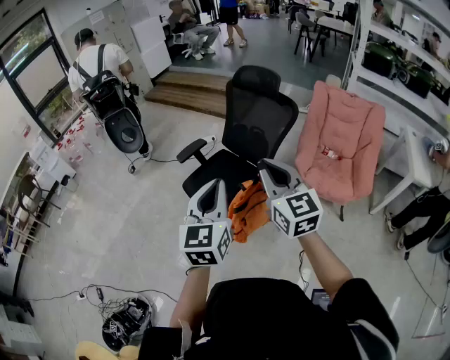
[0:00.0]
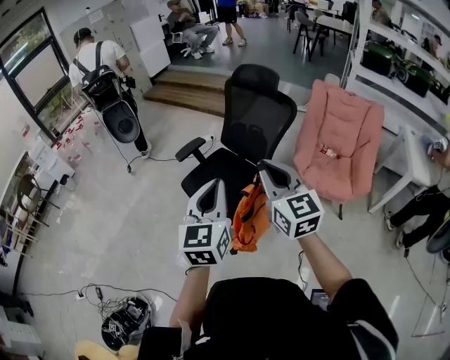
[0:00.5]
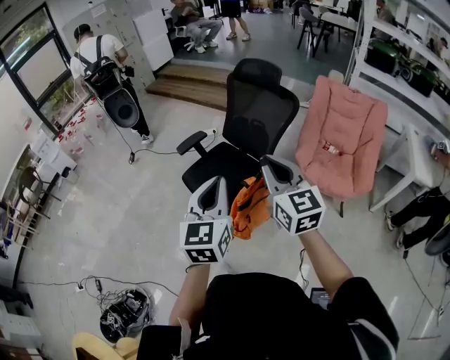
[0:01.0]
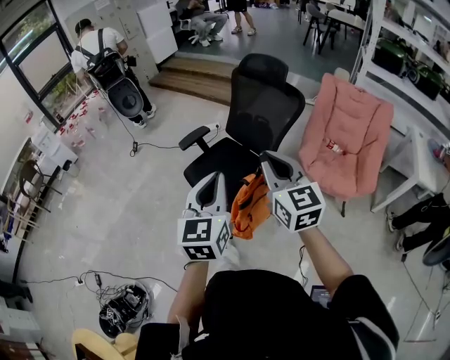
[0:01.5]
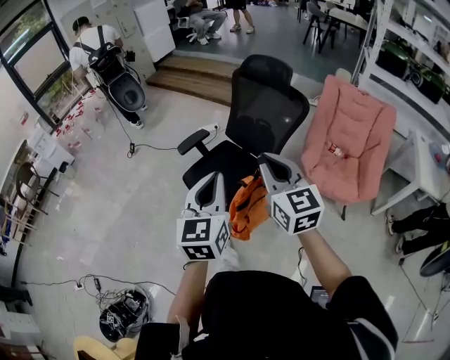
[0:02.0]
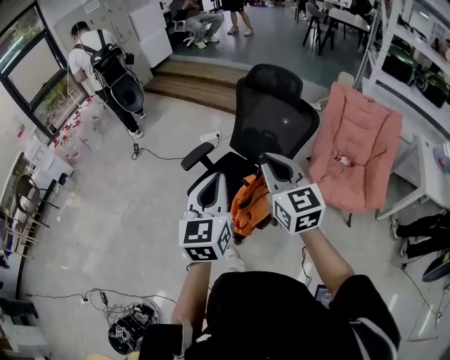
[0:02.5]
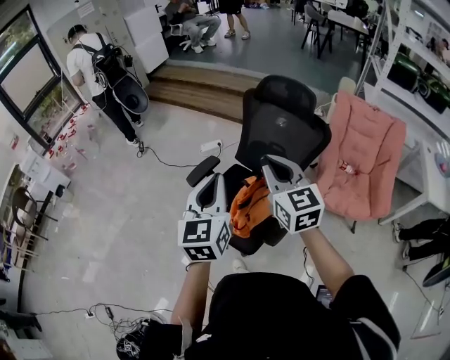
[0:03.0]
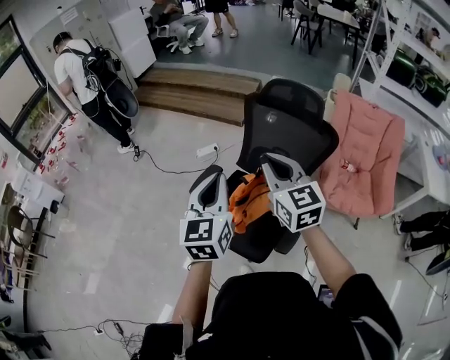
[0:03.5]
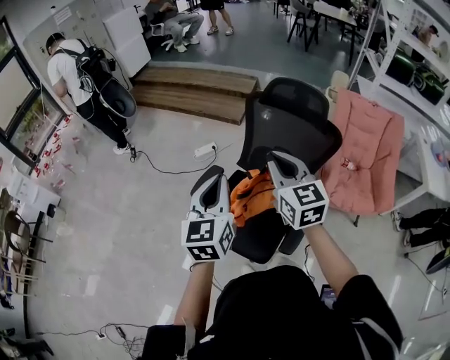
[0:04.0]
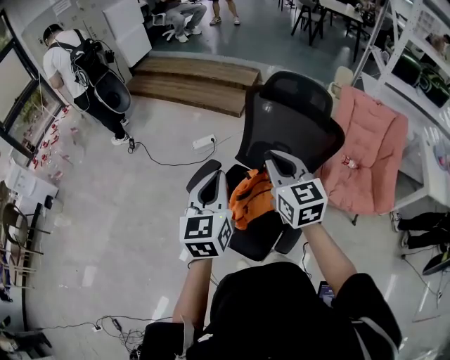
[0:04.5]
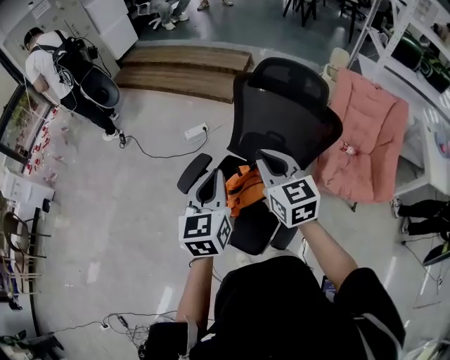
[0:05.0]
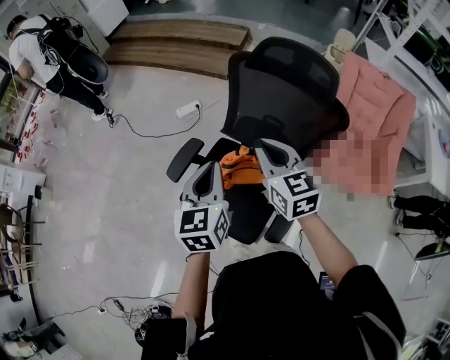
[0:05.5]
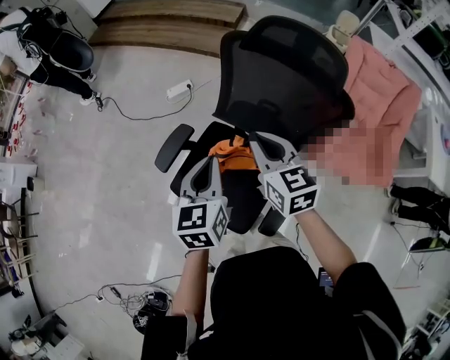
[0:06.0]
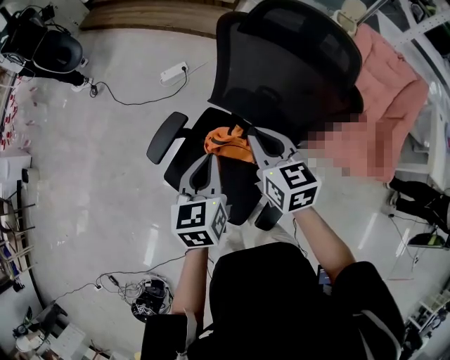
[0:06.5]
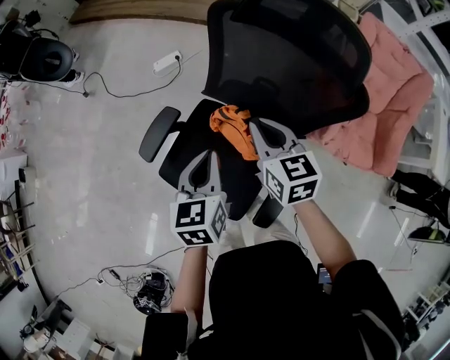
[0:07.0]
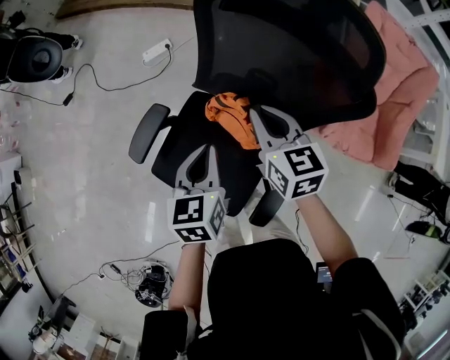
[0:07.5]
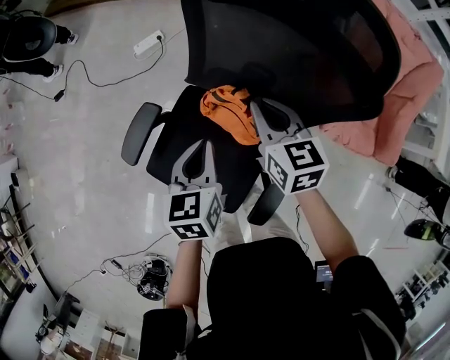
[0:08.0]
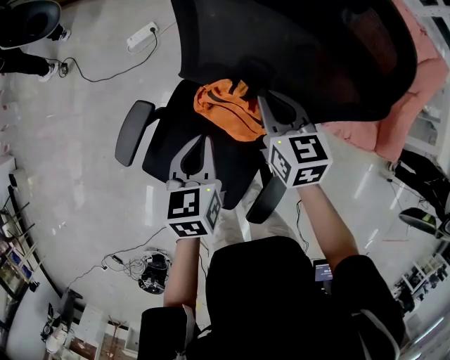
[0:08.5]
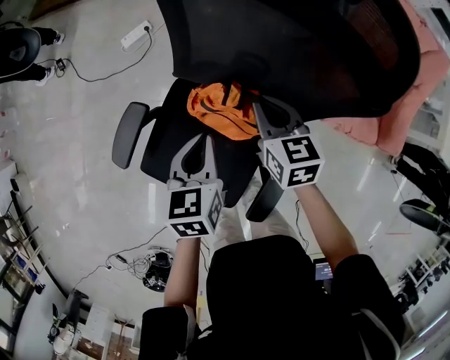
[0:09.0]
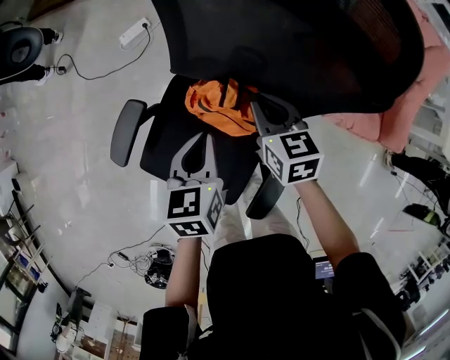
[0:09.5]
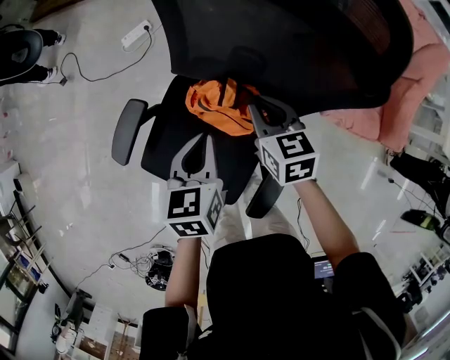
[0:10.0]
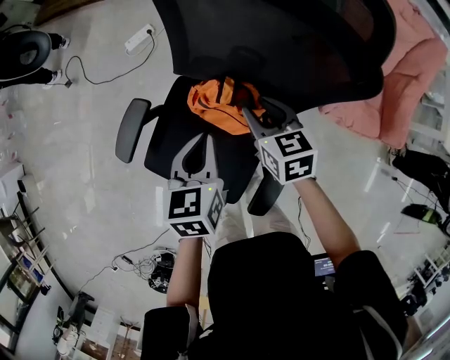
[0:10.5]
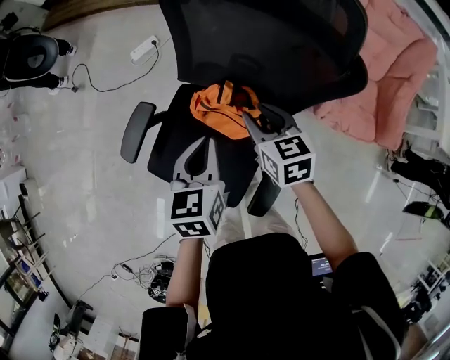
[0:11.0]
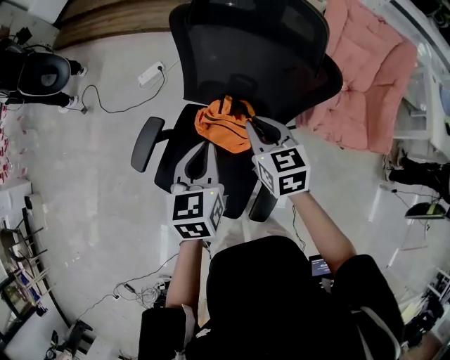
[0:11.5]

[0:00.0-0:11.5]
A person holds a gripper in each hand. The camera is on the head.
0:00.0 to 0:02.0: The two grippers go roughly 5 cm forward.
0:02.0 to 0:04.0: Both grippers travel together forward and to the left, roughly 30 cm.
0:04.0 to 0:06.0: The left gripper goes about 20 cm downward, forward and to the right, while the right gripper moves downward and forward, approximately 20 cm.
0:06.0 to 0:07.5: The left gripper heads downward and forward, covering some 10 cm; the right gripper heads downward, forward and to the right, covering some 15 cm.
0:07.5 to 0:09.5: The left gripper travels downward and to the right by some 10 cm, while the right gripper moves downward and to the right, approximately 15 cm.
0:09.5 to 0:11.5: The grippers both shift upward and backward by approximately 15 cm. The right gripper opens, then closes once more.

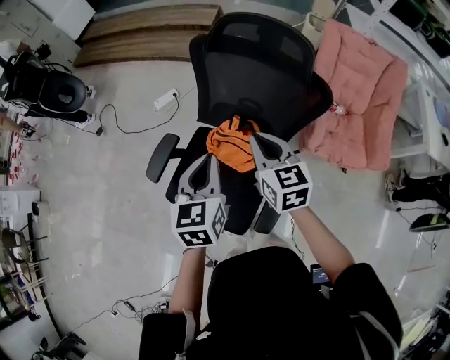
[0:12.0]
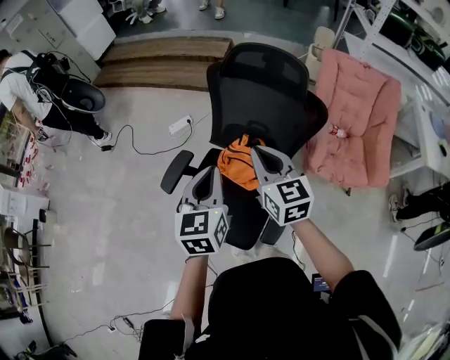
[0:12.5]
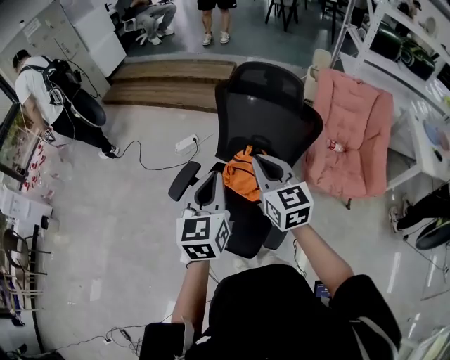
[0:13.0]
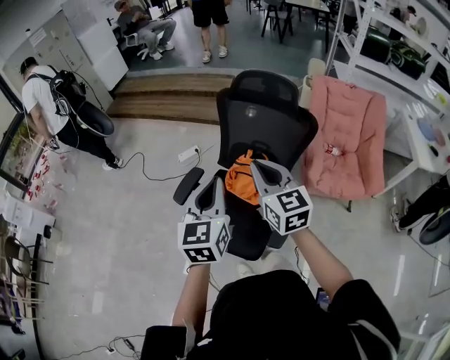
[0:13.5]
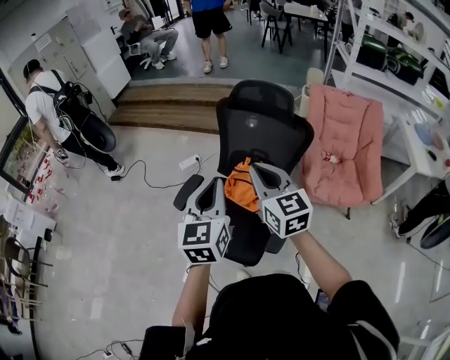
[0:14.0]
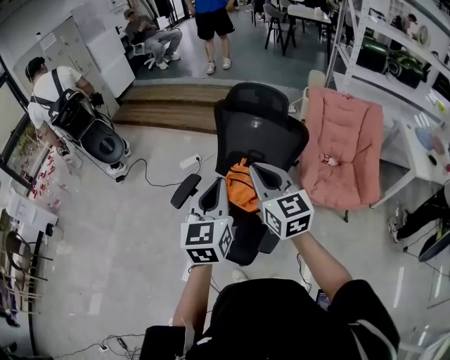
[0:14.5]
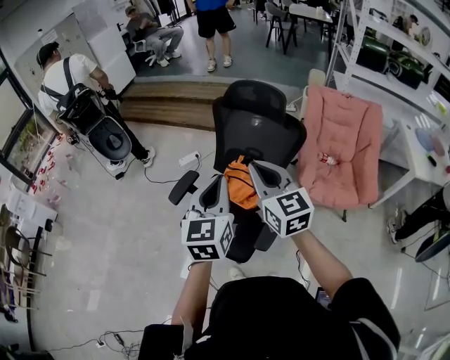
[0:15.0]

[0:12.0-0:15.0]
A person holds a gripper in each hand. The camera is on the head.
0:12.0 to 0:13.5: The left gripper heads backward and upward, covering roughly 20 cm. Meanwhile the right gripper moves backward, upward and to the left, about 25 cm.
0:13.5 to 0:15.0: The right gripper goes roughly 5 cm upward, while the left gripper goes some 5 cm to the right.

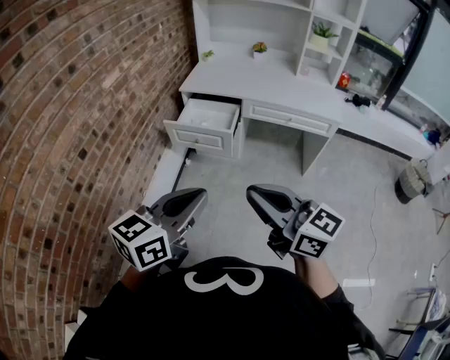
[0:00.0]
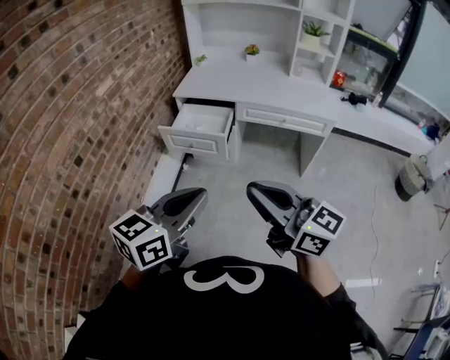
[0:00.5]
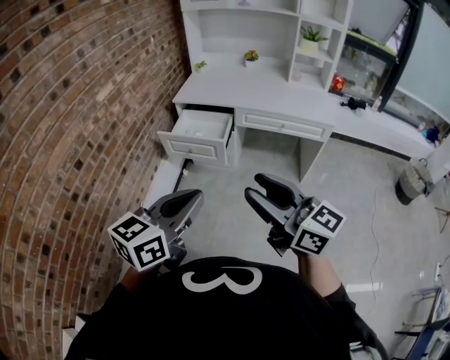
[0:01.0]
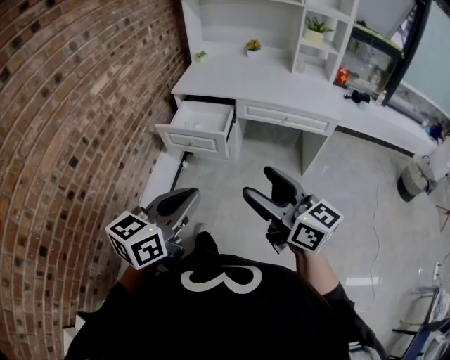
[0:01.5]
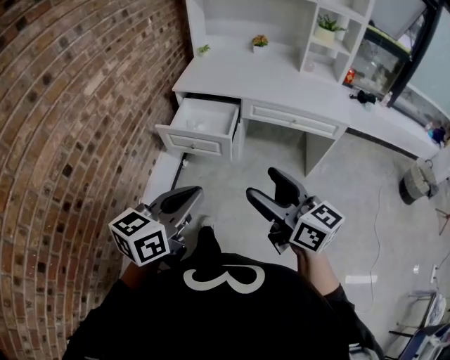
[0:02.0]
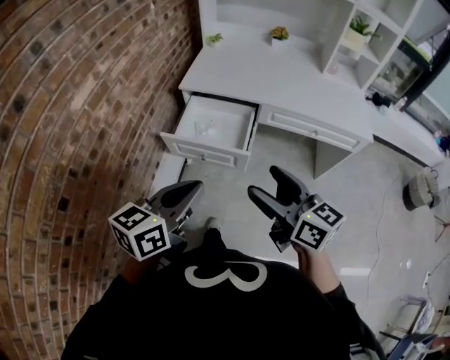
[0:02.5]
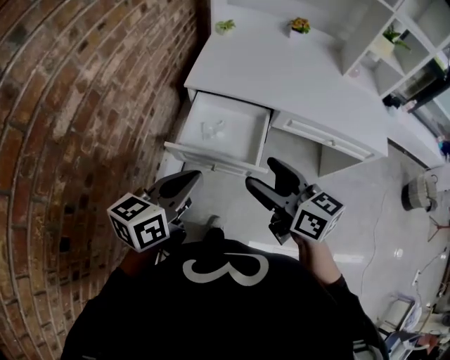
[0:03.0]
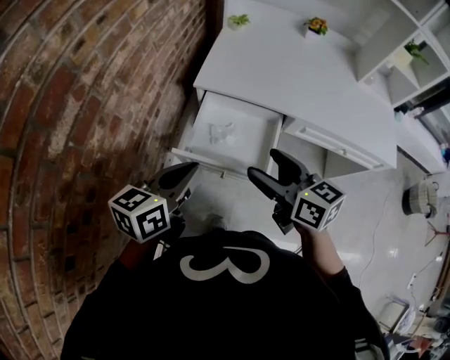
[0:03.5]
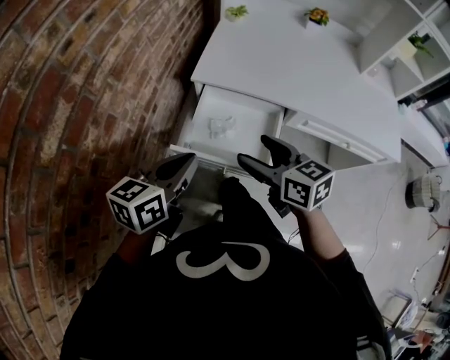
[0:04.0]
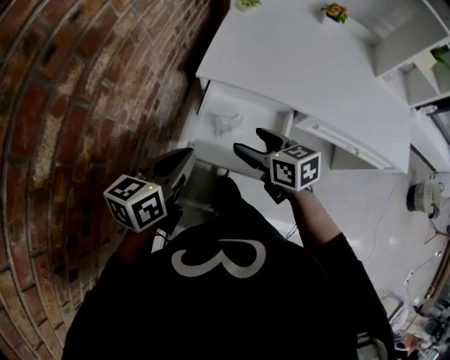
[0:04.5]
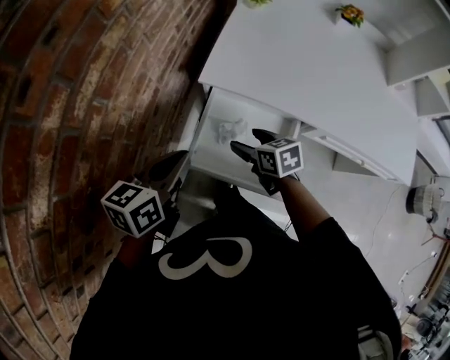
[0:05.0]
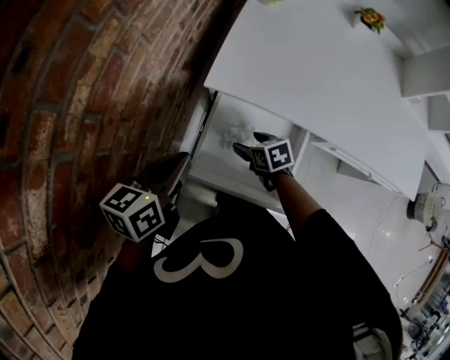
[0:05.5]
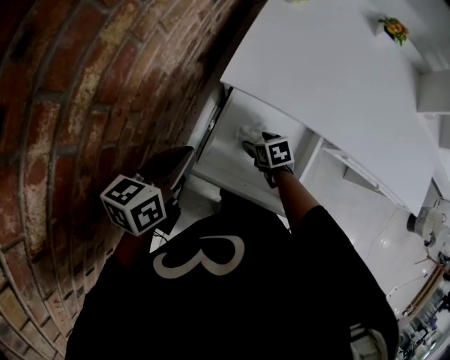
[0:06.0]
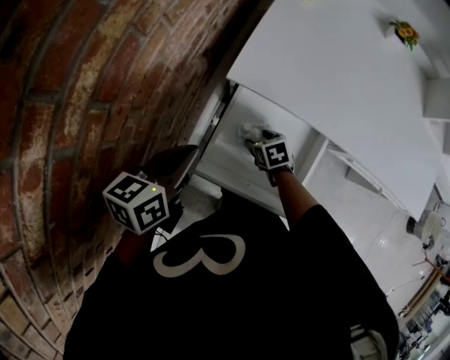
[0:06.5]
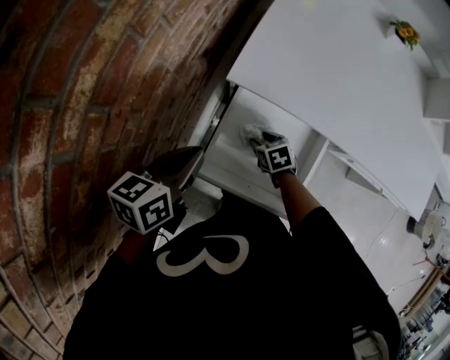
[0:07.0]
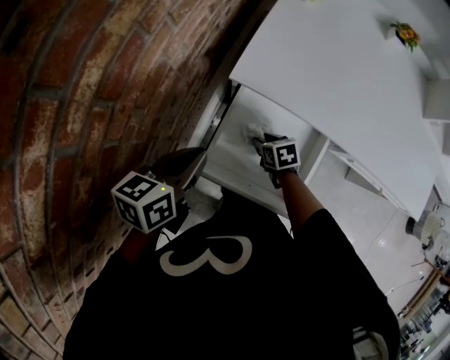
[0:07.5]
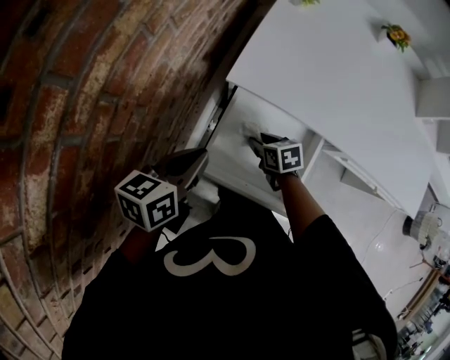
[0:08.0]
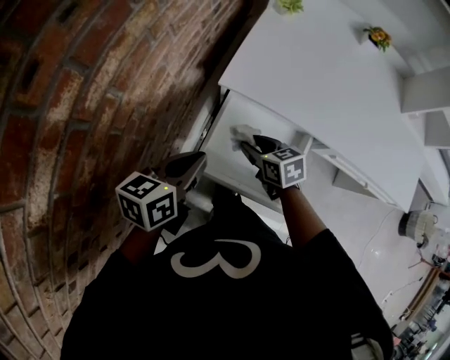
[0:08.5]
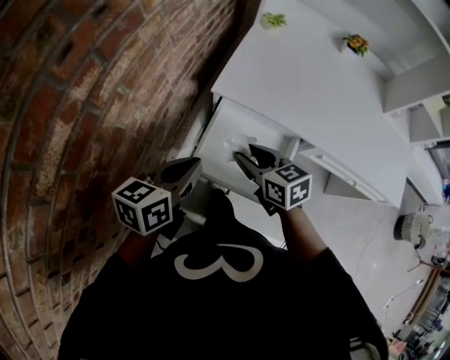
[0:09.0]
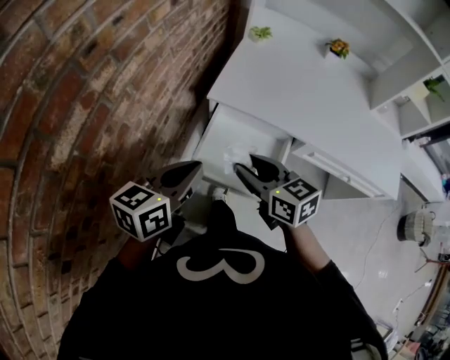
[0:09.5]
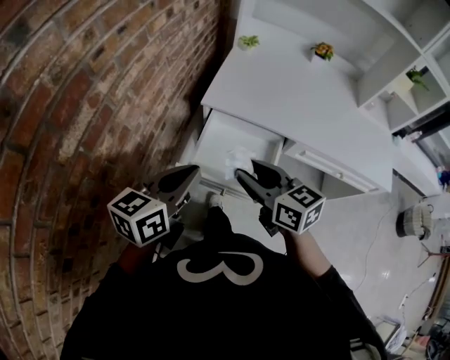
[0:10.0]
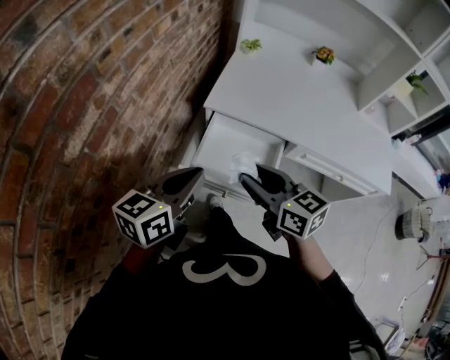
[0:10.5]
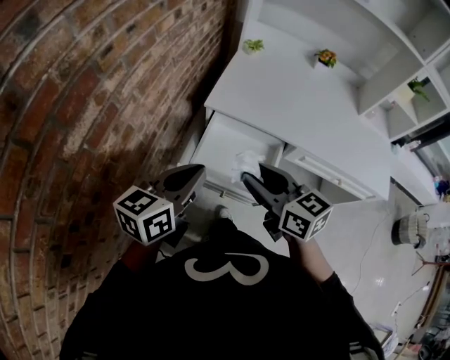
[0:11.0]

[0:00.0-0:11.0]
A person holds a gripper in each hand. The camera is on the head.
0:00.0 to 0:02.0: Both grippers travel together forward and downward, some 10 cm. The right gripper opens its fingers.
0:02.0 to 0:03.5: The pair of grippers is taken forward and to the left, roughly 40 cm.
0:03.5 to 0:05.5: The right gripper shifts some 35 cm downward and forward, and tilts its fingers about 30 degrees downward. Meanwhile the left gripper heads forward and downward, covering about 20 cm.
0:05.5 to 0:07.5: The right gripper travels downward by about 5 cm, and closes.
0:07.5 to 0:09.0: The right gripper moves upward, some 25 cm, and swivels approximately 30 degrees; the left gripper moves upward and backward, some 10 cm.
0:09.0 to 0:11.0: The right gripper goes approximately 20 cm upward and backward. Meanwhile the left gripper moves upward and backward, approximately 10 cm.

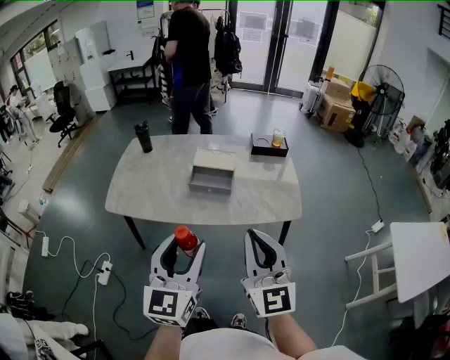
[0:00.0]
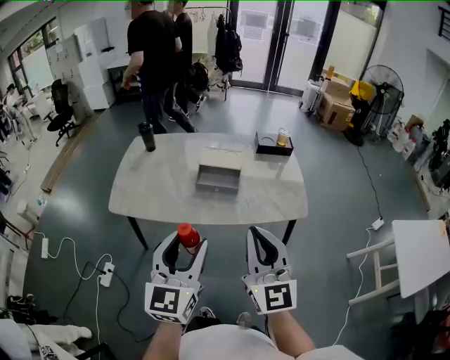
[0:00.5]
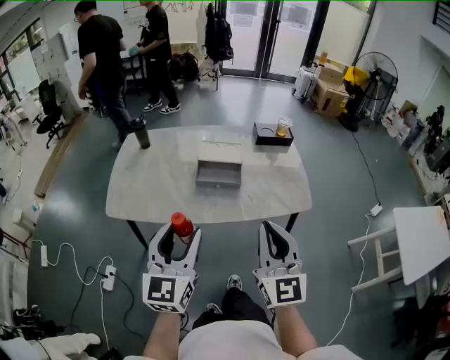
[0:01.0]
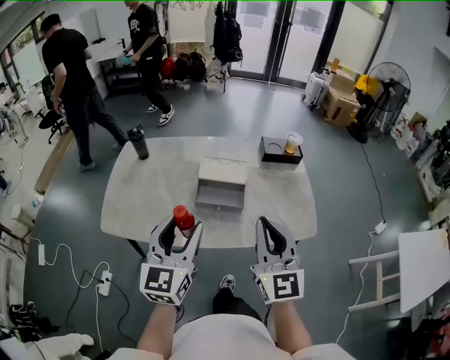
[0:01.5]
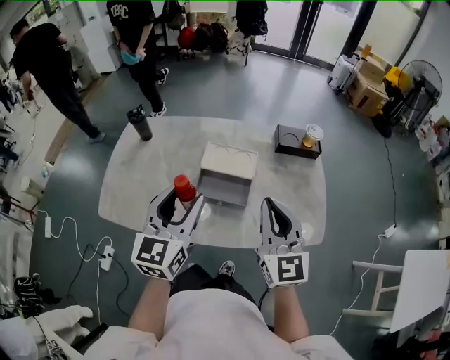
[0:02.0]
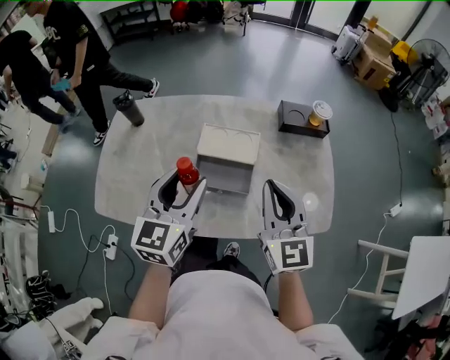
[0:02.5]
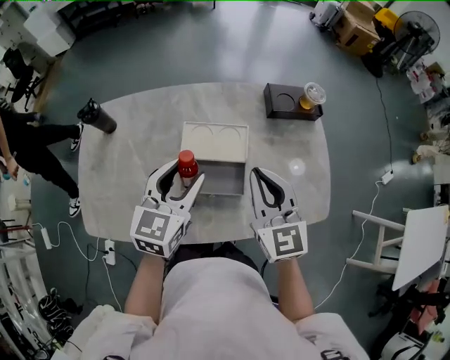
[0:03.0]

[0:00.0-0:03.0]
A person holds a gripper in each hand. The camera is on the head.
0:00.0 to 0:01.5: Both grippers move forward, about 20 cm.
0:01.5 to 0:03.0: Both grippers travel together forward and downward, some 30 cm. The left gripper swivels approximately 20 degrees.
